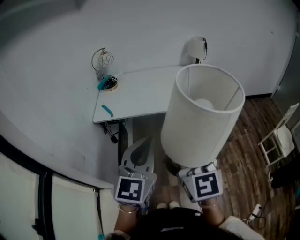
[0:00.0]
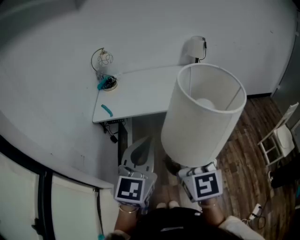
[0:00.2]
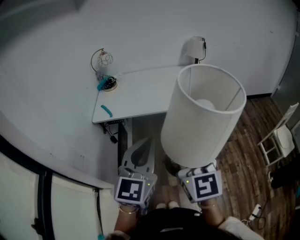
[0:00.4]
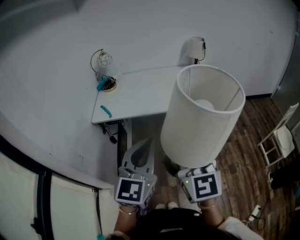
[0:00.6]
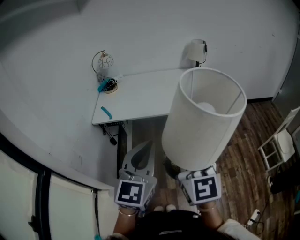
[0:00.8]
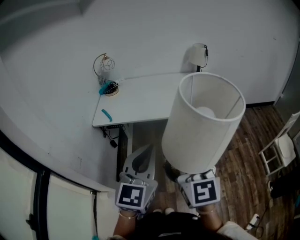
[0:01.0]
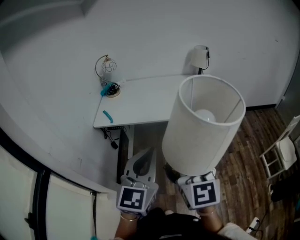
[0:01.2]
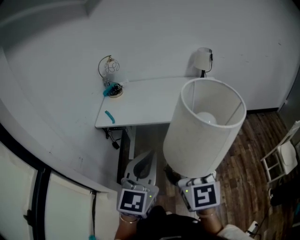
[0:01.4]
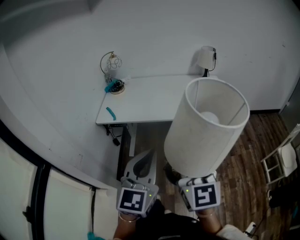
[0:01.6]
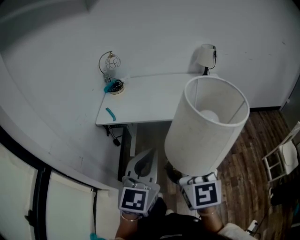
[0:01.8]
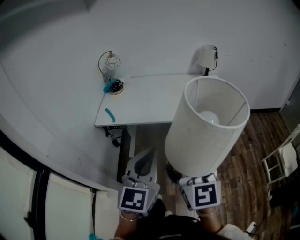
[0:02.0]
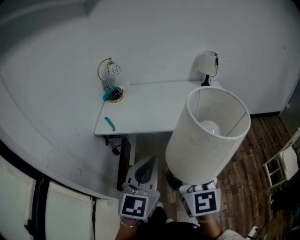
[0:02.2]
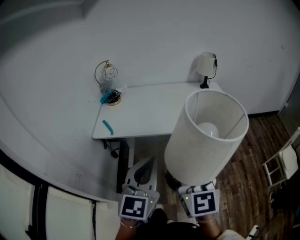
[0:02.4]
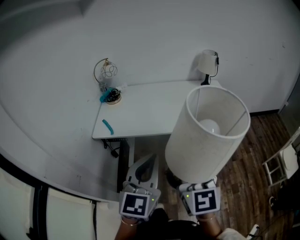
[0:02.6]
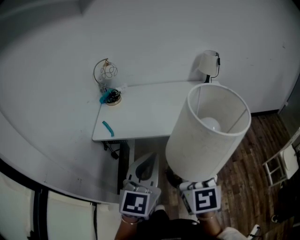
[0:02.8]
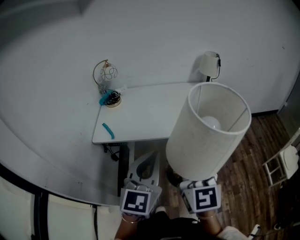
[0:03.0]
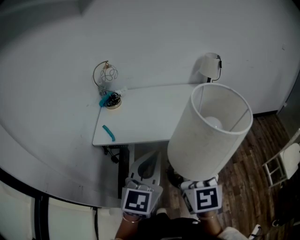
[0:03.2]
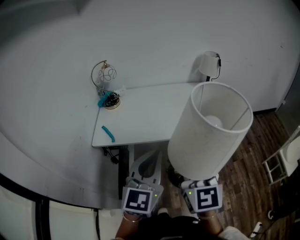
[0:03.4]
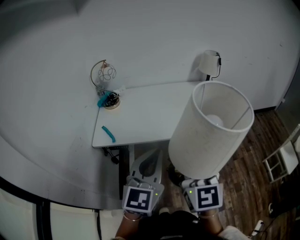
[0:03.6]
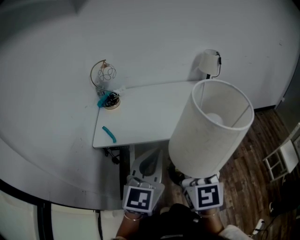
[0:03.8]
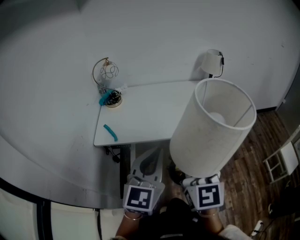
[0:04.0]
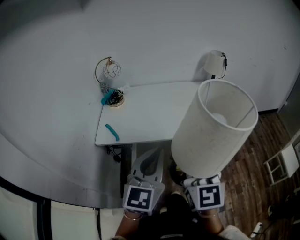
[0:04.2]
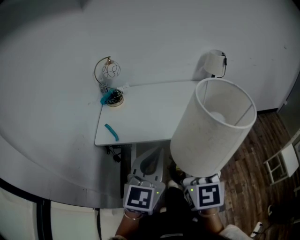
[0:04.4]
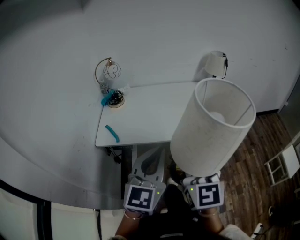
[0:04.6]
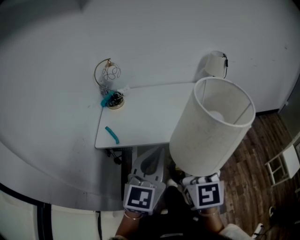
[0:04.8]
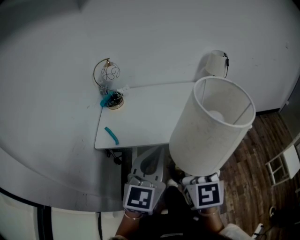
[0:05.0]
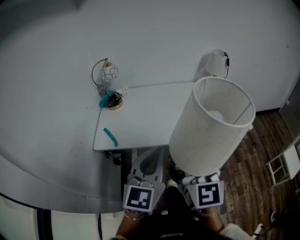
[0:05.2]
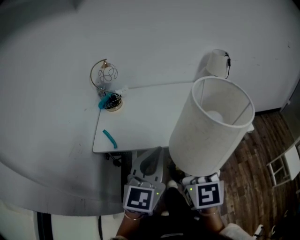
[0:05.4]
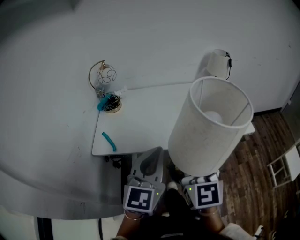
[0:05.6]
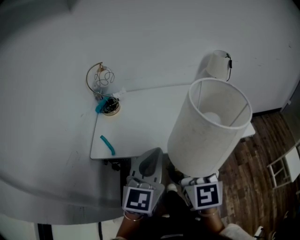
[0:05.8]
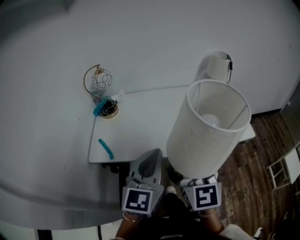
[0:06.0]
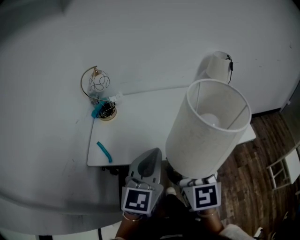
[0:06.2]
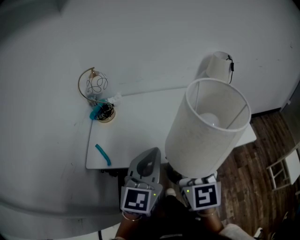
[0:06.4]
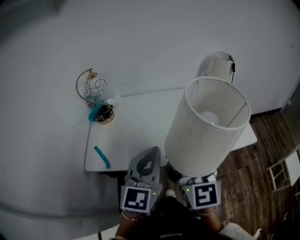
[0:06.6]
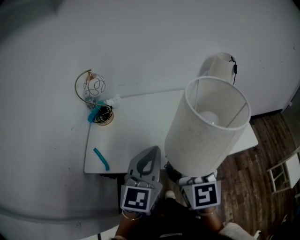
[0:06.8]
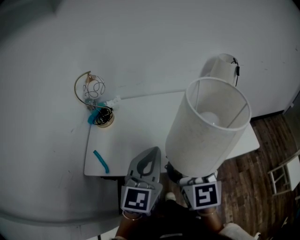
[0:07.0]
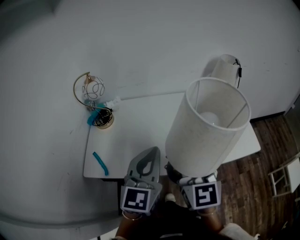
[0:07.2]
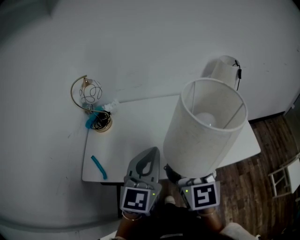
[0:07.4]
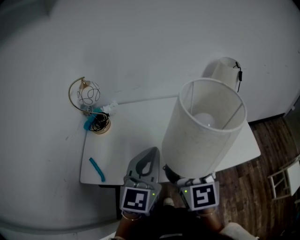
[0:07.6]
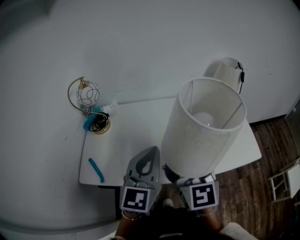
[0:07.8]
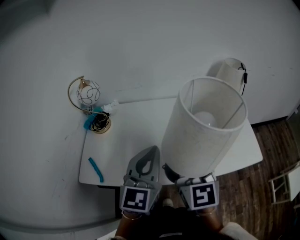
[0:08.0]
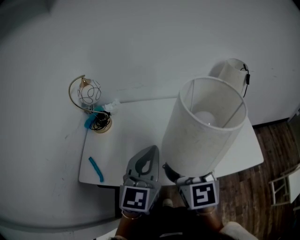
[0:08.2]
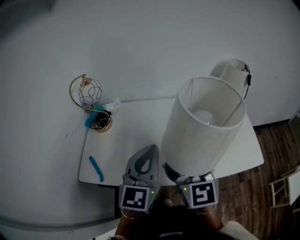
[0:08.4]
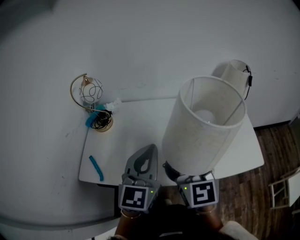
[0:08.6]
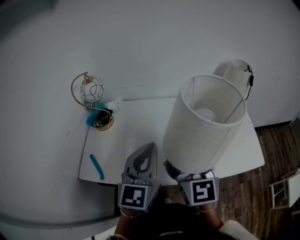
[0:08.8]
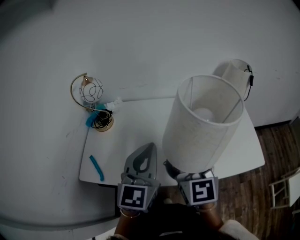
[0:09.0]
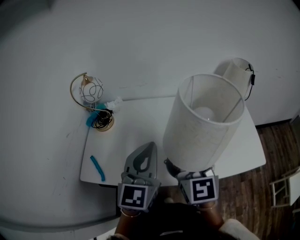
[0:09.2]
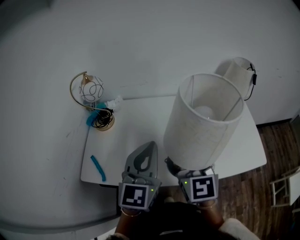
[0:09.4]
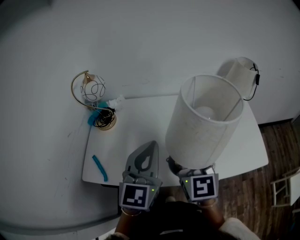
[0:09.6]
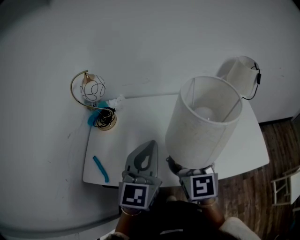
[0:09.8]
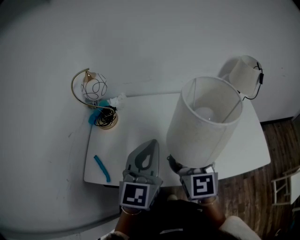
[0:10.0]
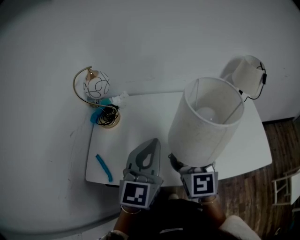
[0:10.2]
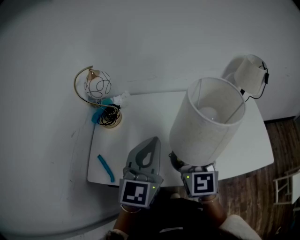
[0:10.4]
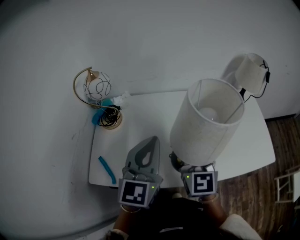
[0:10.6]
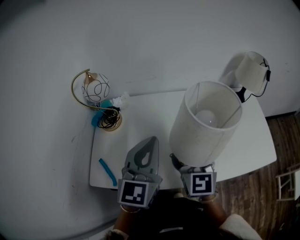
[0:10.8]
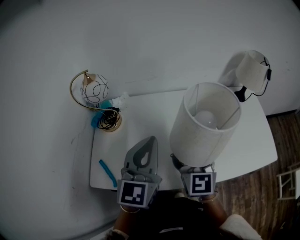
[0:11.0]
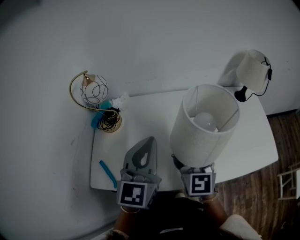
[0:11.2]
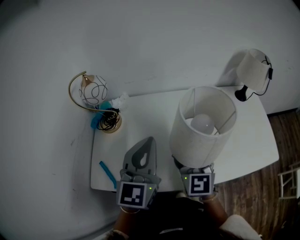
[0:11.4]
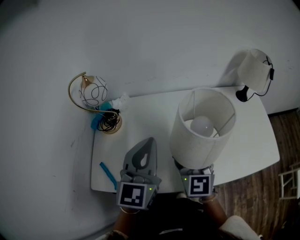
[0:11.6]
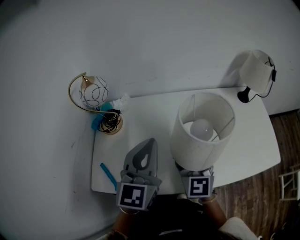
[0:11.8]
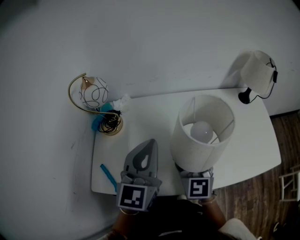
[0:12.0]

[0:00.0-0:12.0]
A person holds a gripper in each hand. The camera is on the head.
0:00.0 to 0:01.6: The grippers move only a little.
0:01.6 to 0:03.0: The grippers both shift forward by roughly 15 cm.
0:03.0 to 0:04.4: The right gripper changes place by approximately 5 cm. Meanwhile the left gripper shifts by some 5 cm.
0:04.4 to 0:06.0: Both grippers travel together forward, roughly 15 cm.
0:06.0 to 0:07.6: Both grippers move forward, roughly 15 cm.
0:07.6 to 0:09.0: The right gripper goes roughly 5 cm forward.
0:09.0 to 0:10.4: The right gripper heads forward, covering roughly 5 cm. The left gripper moves to the left, roughly 5 cm.
0:10.4 to 0:12.0: The left gripper changes place by roughly 5 cm; the right gripper heads downward, covering about 5 cm.

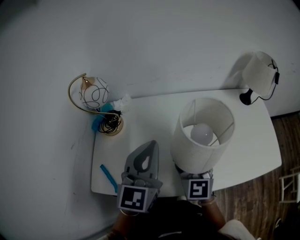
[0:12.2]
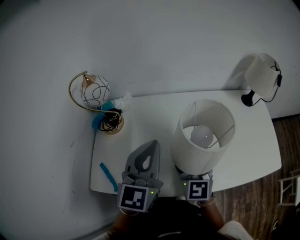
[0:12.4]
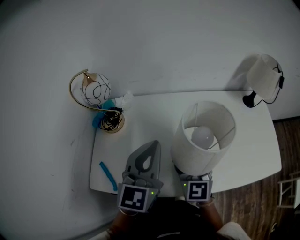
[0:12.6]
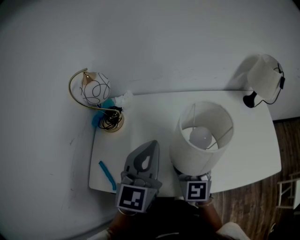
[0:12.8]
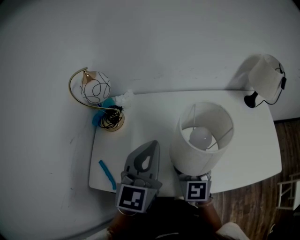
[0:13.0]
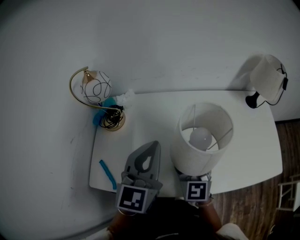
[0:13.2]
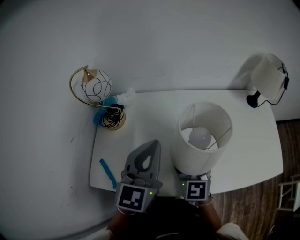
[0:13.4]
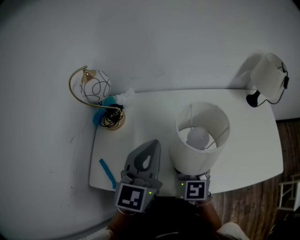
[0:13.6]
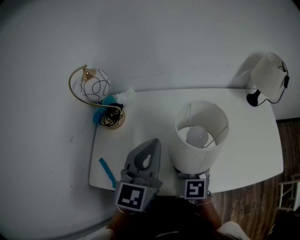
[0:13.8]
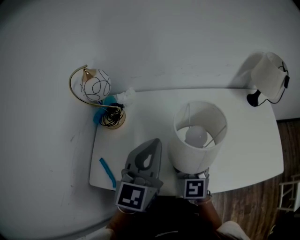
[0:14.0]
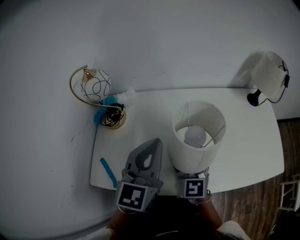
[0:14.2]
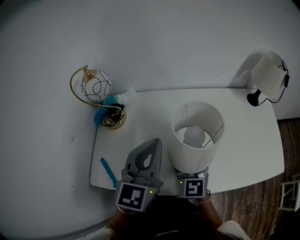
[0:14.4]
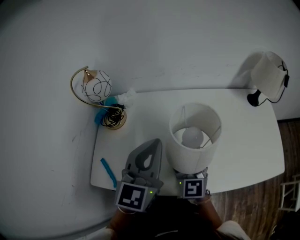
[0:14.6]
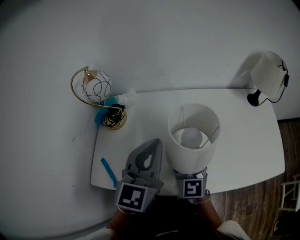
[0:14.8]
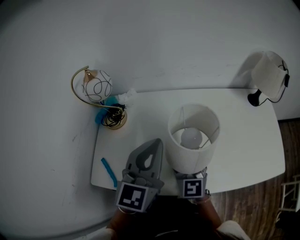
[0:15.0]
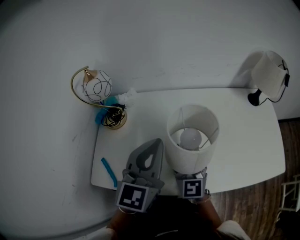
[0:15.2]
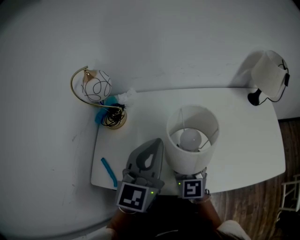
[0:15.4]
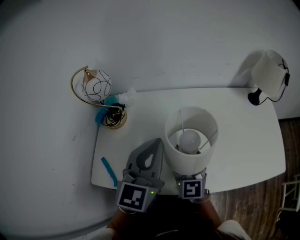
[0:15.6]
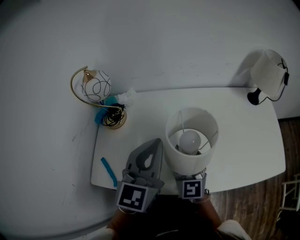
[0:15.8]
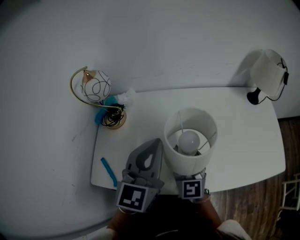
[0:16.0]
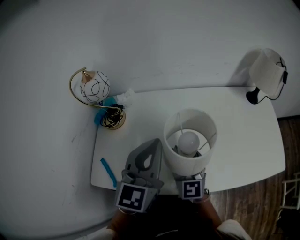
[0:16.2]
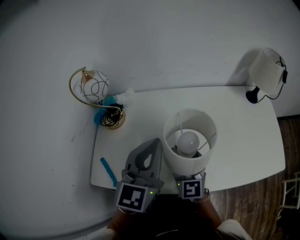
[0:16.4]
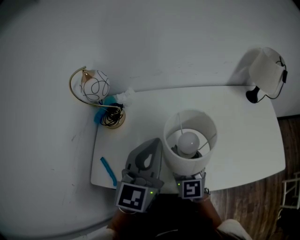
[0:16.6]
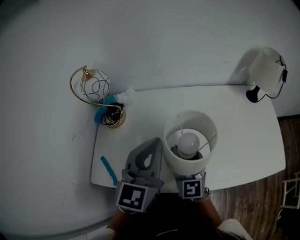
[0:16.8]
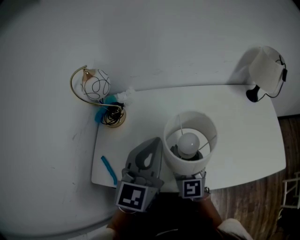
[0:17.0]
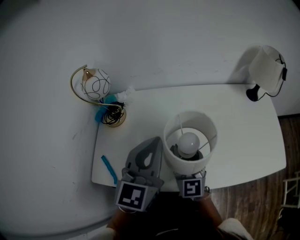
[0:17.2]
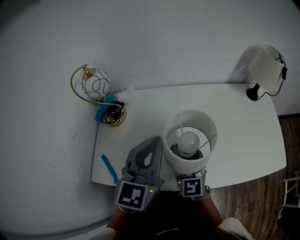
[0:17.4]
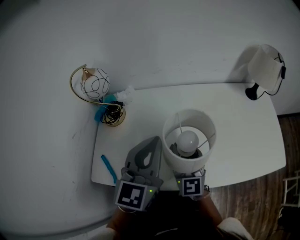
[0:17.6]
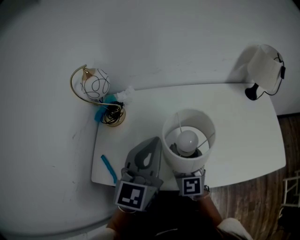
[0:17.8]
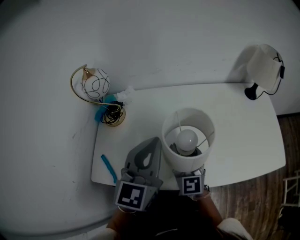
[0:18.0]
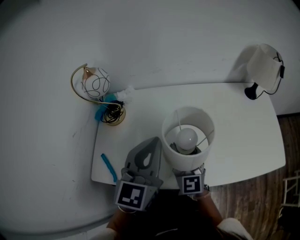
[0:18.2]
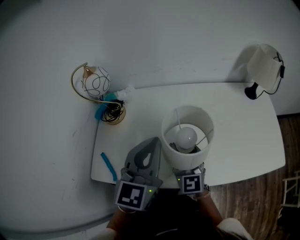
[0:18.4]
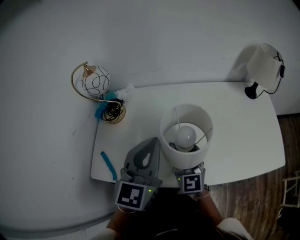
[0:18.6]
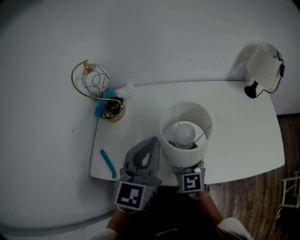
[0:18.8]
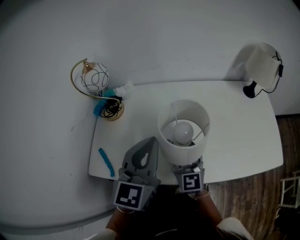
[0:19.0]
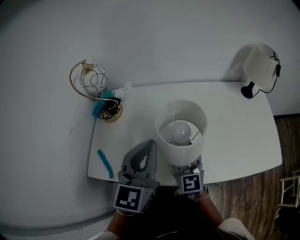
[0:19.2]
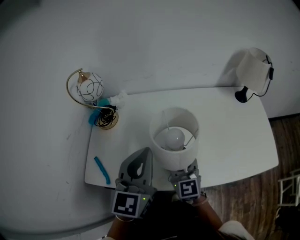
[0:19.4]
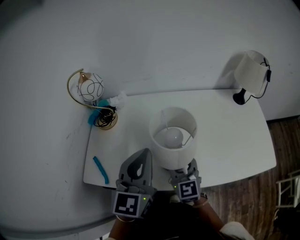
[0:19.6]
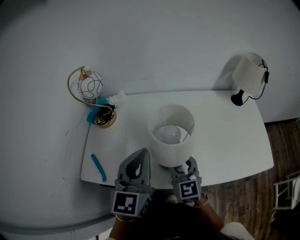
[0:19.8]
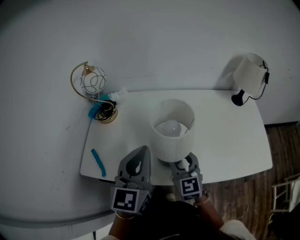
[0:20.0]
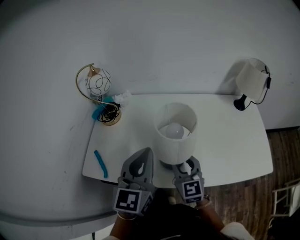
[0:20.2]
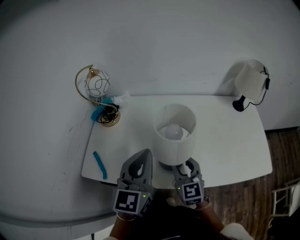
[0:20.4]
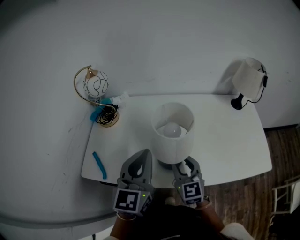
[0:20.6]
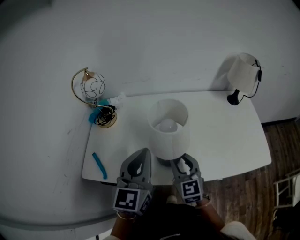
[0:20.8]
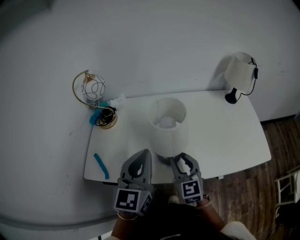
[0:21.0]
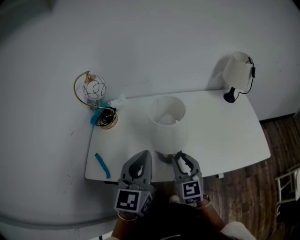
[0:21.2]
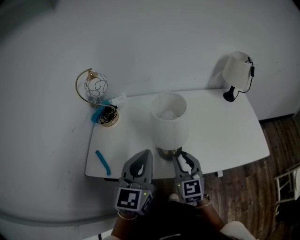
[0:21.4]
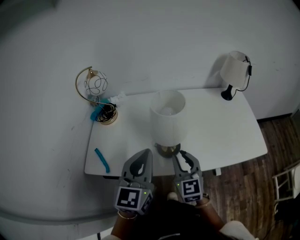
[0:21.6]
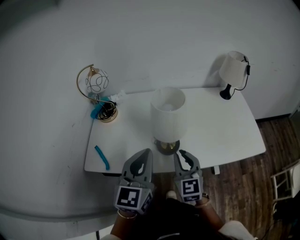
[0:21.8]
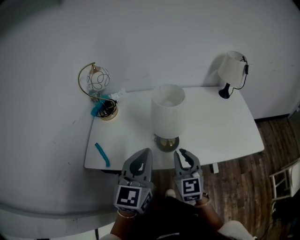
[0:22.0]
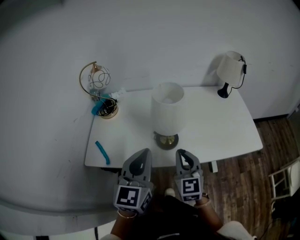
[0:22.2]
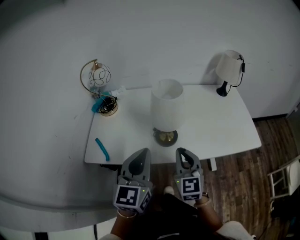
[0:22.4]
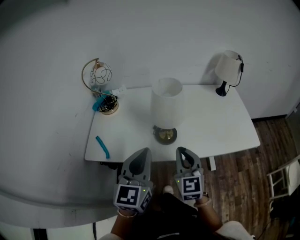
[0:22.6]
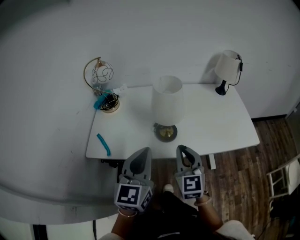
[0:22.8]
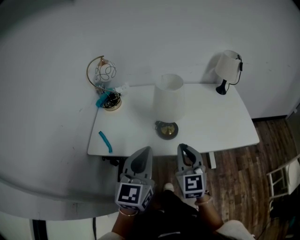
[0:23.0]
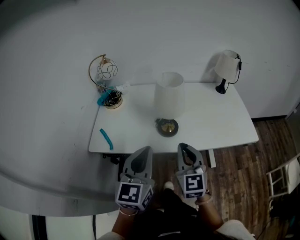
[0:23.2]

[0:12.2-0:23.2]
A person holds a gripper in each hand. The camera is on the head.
0:12.2 to 0:17.0: The grippers move only a little.
0:17.0 to 0:18.4: The grippers make only small movements.
0:18.4 to 0:20.0: The right gripper shifts by about 5 cm; the left gripper goes approximately 5 cm backward.
0:20.0 to 0:21.6: Both grippers travel together backward, roughly 10 cm.
0:21.6 to 0:23.2: The left gripper shifts approximately 15 cm backward; the right gripper heads backward and upward, covering roughly 15 cm, and closes.

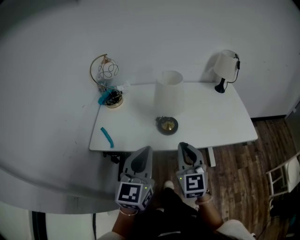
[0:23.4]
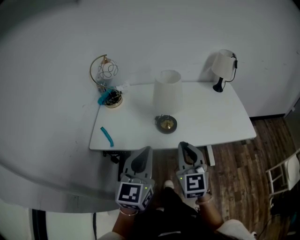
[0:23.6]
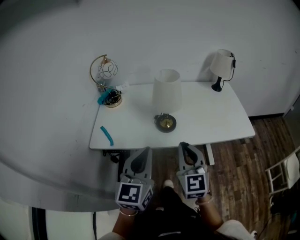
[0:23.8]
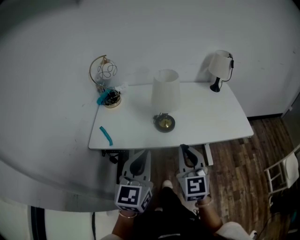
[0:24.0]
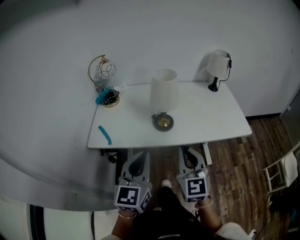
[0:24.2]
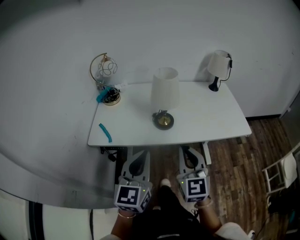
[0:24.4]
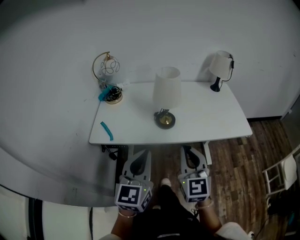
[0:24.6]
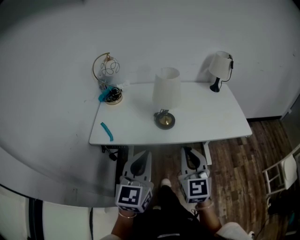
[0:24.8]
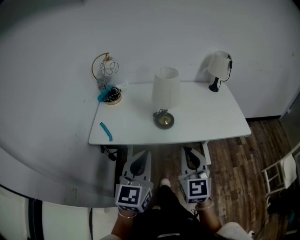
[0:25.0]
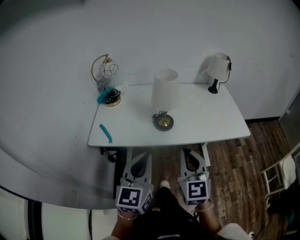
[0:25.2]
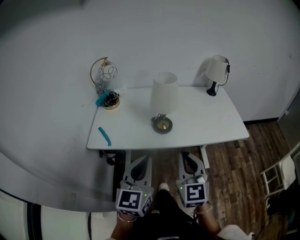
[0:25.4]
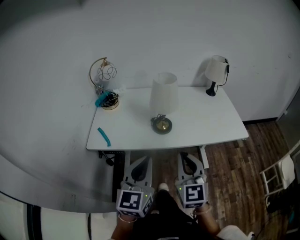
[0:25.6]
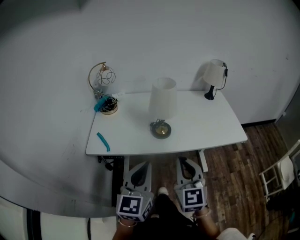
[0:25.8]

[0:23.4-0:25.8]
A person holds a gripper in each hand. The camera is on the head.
0:23.4 to 0:24.6: Both grippers travel together backward, about 5 cm.
0:24.6 to 0:25.8: The grippers make only small movements.
